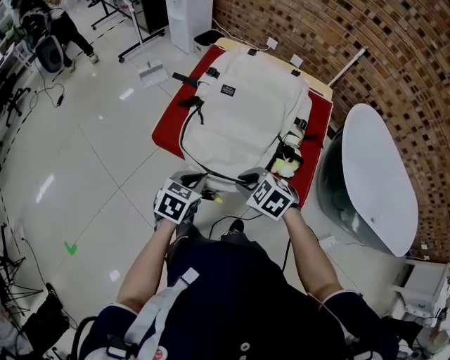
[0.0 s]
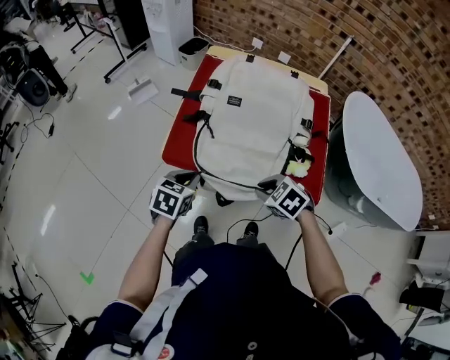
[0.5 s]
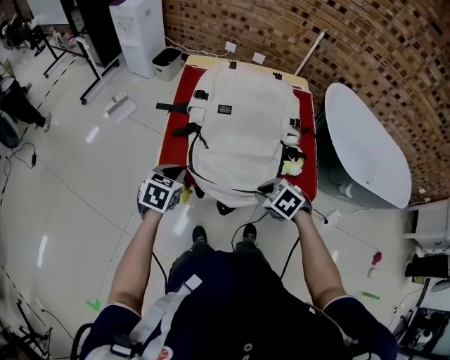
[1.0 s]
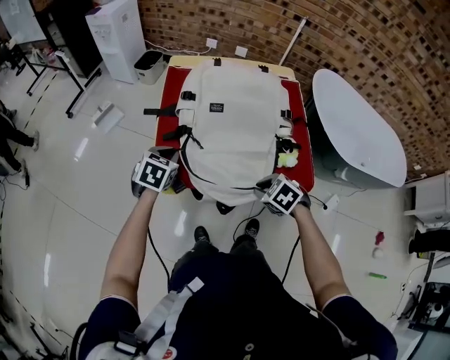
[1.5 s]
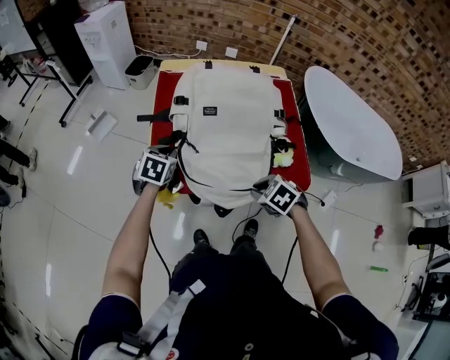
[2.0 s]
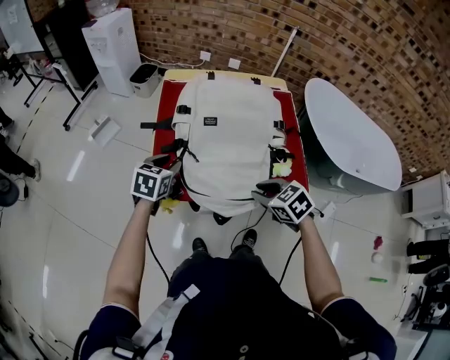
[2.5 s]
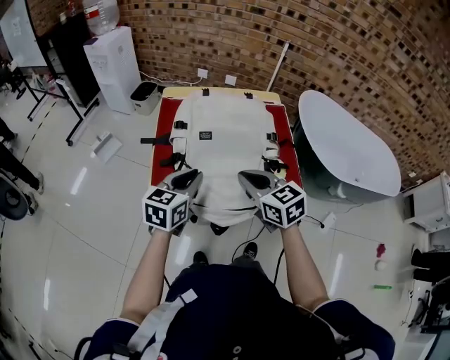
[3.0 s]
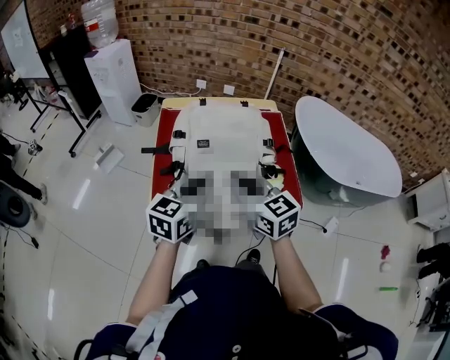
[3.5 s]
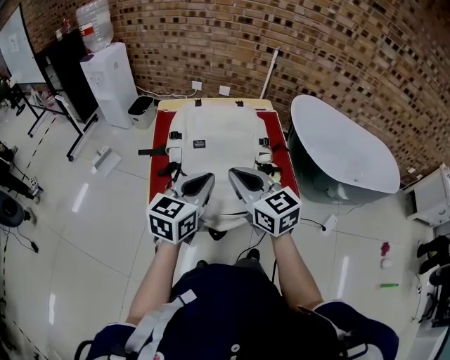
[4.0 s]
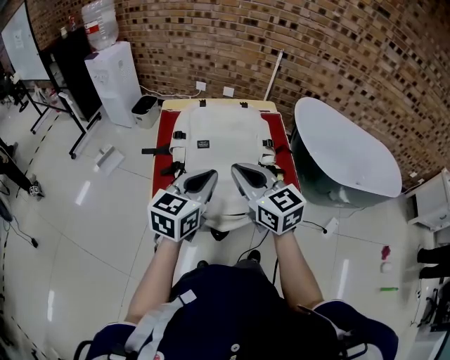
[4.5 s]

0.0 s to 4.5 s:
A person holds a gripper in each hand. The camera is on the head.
0.0 to 2.0 s: The right gripper rotates approximately 30 degrees. Meanwhile the left gripper shifts roughly 20 cm forward.
2.0 to 4.5 s: The left gripper goes some 25 cm upward and to the right, angles its fingers upward, by some 40 degrees, and opens and closes again, while the right gripper goes some 25 cm upward, and angles its fingers upward, by approximately 60 degrees.

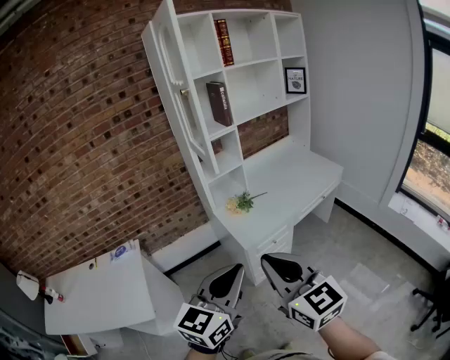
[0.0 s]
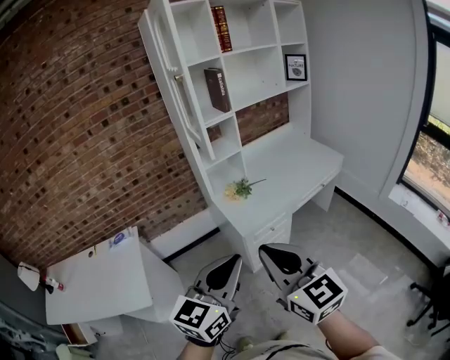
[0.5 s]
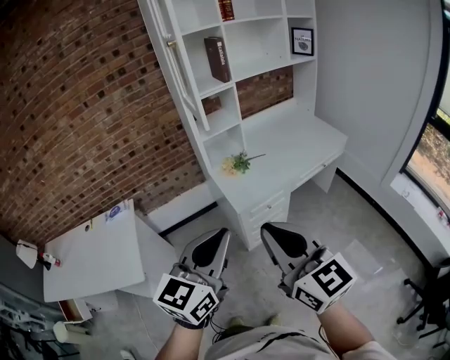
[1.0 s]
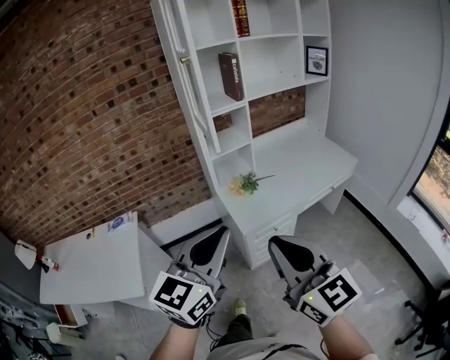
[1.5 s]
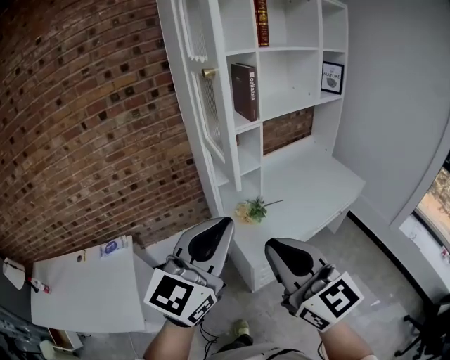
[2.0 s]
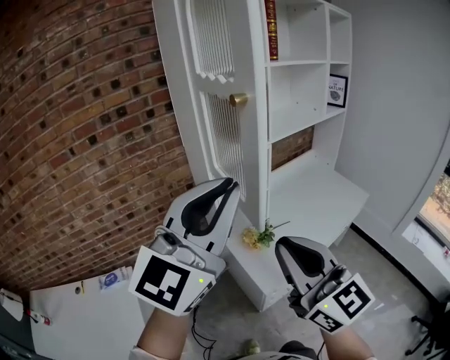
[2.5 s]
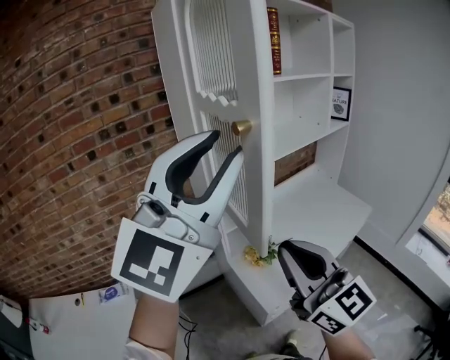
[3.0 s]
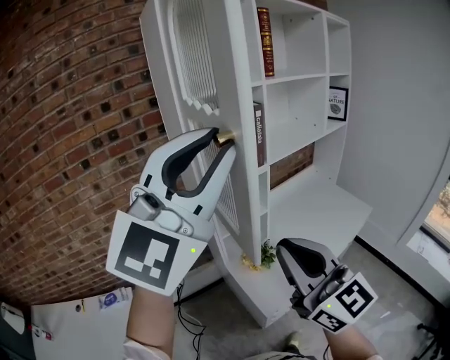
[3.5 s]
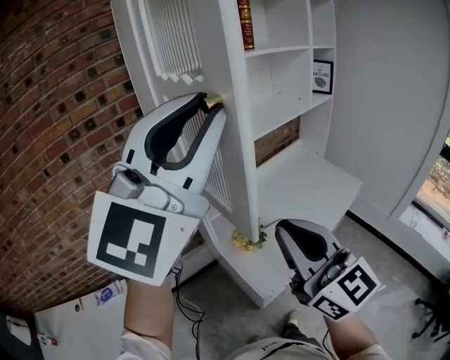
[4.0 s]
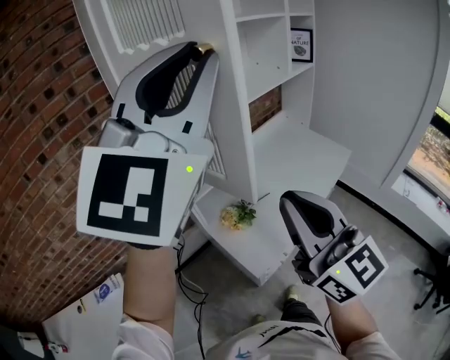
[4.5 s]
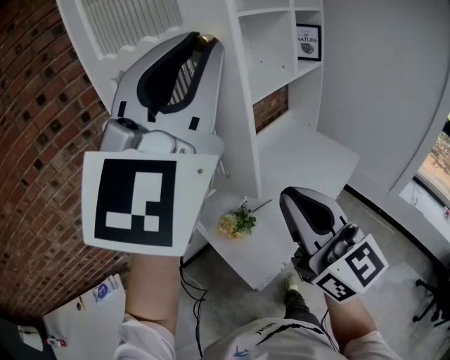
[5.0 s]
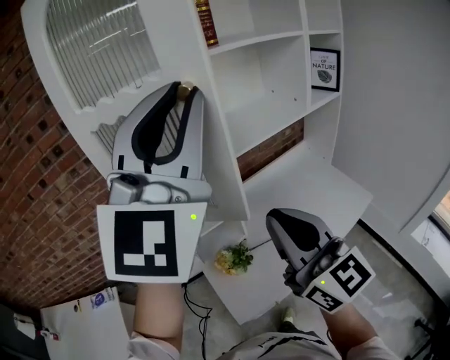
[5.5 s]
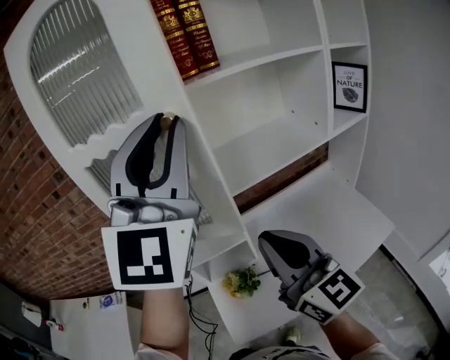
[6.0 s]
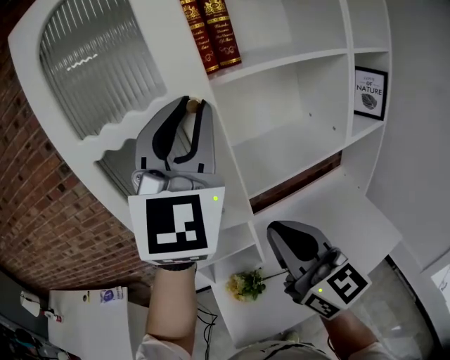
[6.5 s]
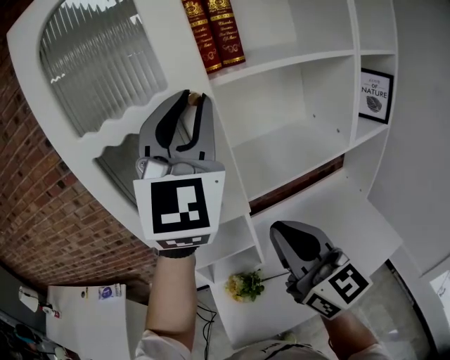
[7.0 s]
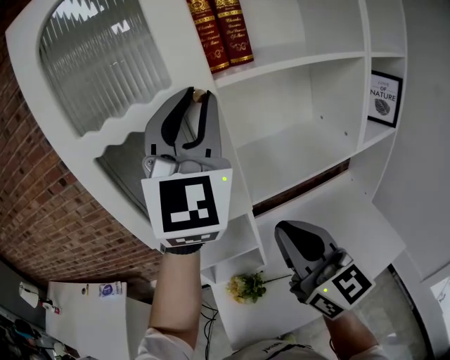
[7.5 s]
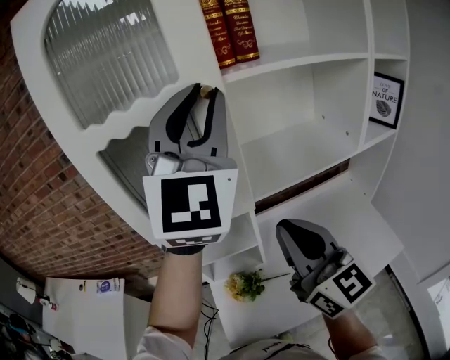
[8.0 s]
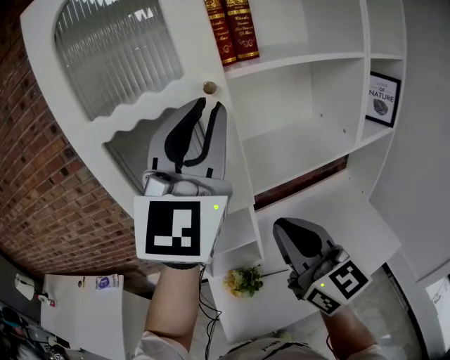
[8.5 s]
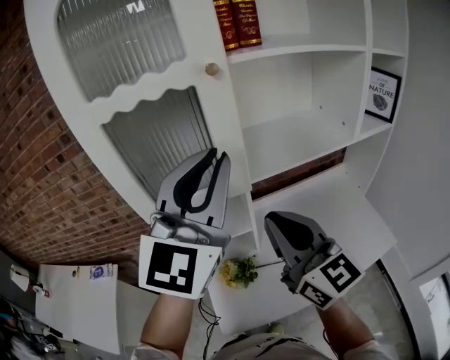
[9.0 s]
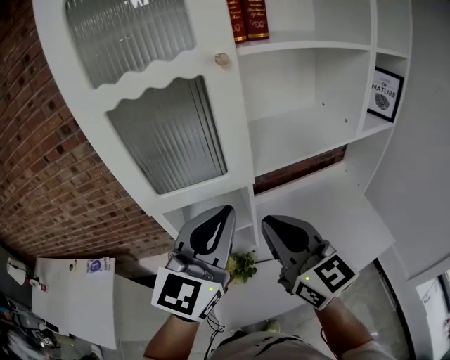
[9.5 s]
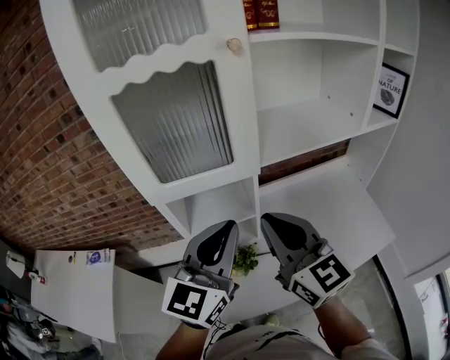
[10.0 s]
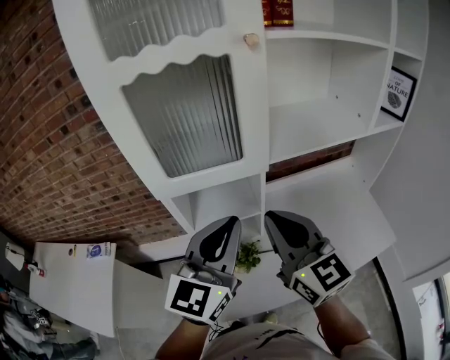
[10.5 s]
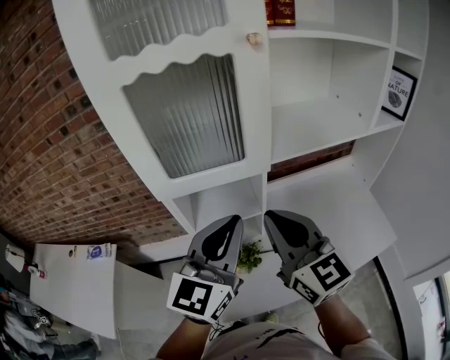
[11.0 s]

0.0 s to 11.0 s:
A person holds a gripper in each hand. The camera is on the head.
0.0 to 2.0 s: The left gripper moves forward and upward, approximately 25 cm. Meanwhile the right gripper is displaced forward by about 20 cm.
2.0 to 3.5 s: The right gripper heads forward, covering approximately 15 cm, while the left gripper is displaced upward and forward by approximately 25 cm, and rotates approximately 30 degrees.
3.5 to 5.5 s: Both grippers move forward and to the right, approximately 25 cm.
5.5 to 7.5 s: Both grippers travel together forward, approximately 15 cm. The left gripper swivels roughly 20 degrees.
7.5 to 9.0 s: The left gripper is displaced downward and backward by about 15 cm, and rotates some 20 degrees.
9.0 to 11.0 s: The left gripper is displaced downward by about 15 cm, and turns by roughly 20 degrees, while the right gripper heads to the left, covering some 5 cm.

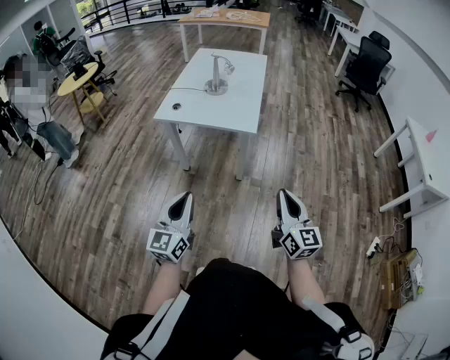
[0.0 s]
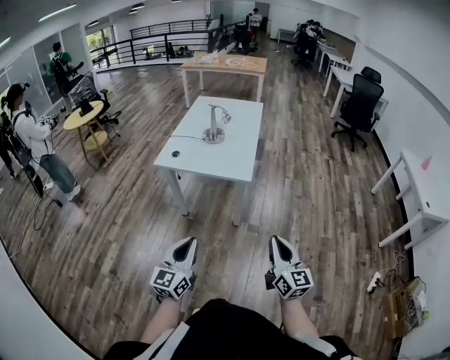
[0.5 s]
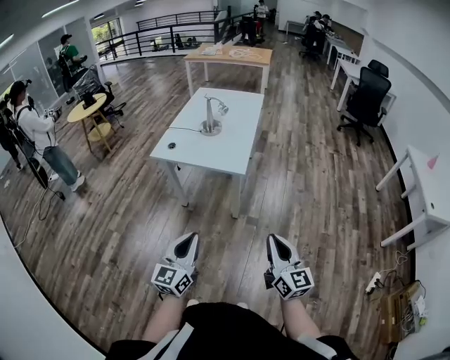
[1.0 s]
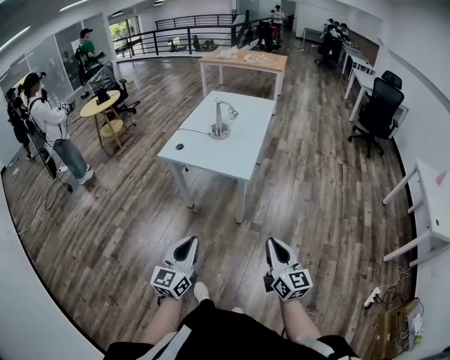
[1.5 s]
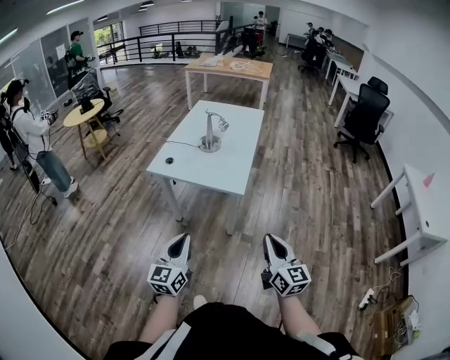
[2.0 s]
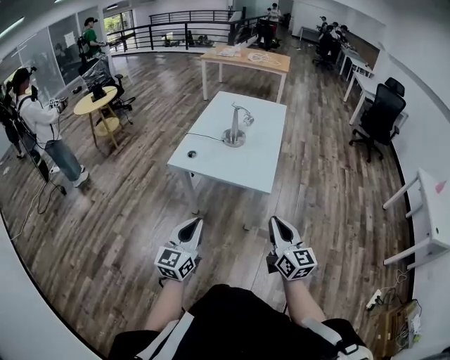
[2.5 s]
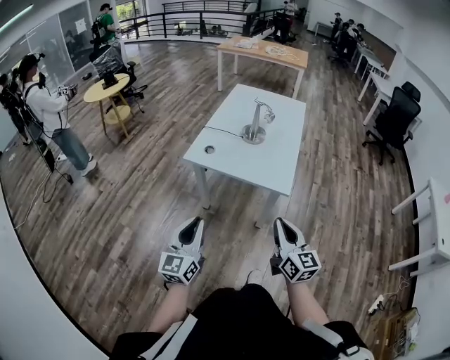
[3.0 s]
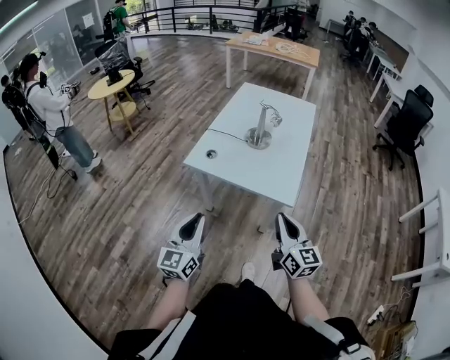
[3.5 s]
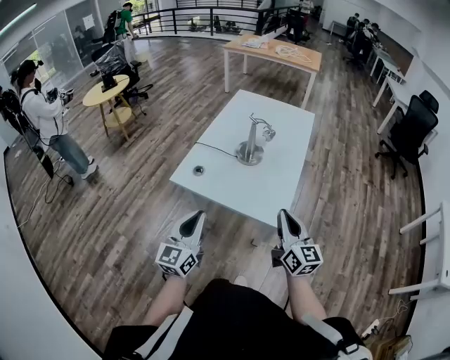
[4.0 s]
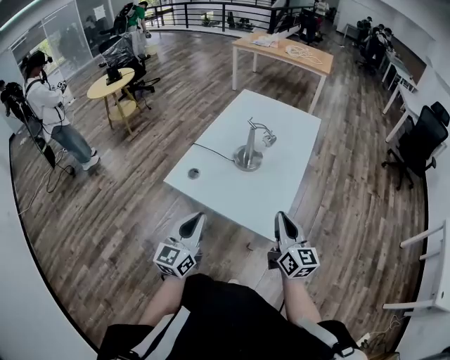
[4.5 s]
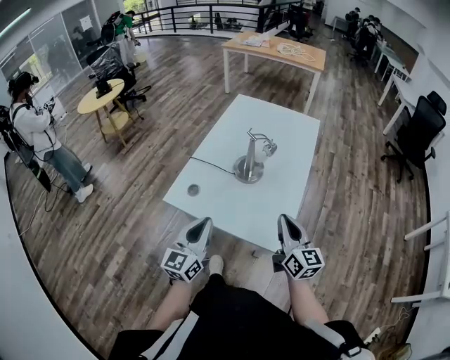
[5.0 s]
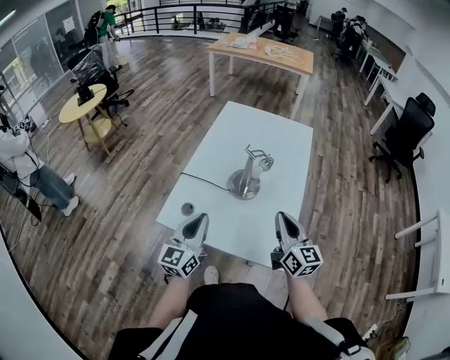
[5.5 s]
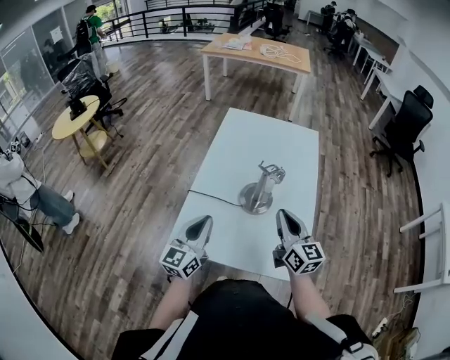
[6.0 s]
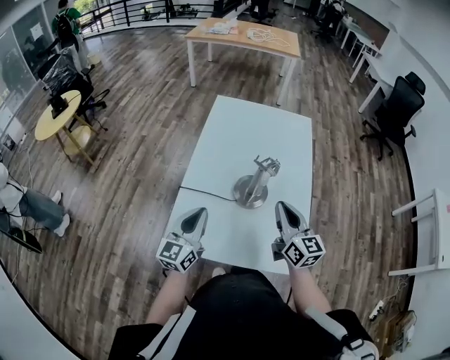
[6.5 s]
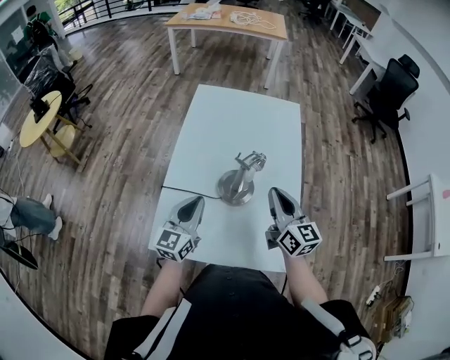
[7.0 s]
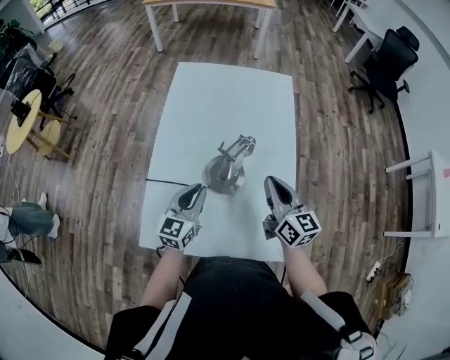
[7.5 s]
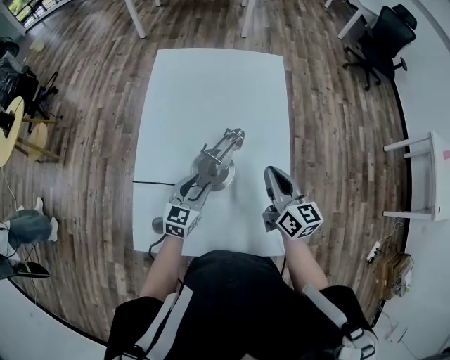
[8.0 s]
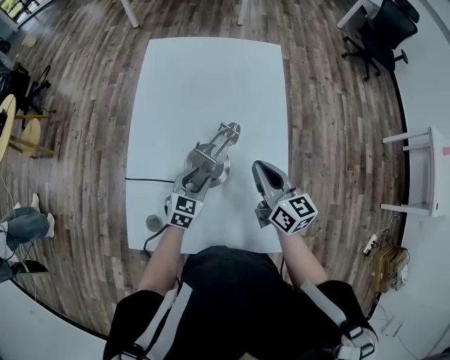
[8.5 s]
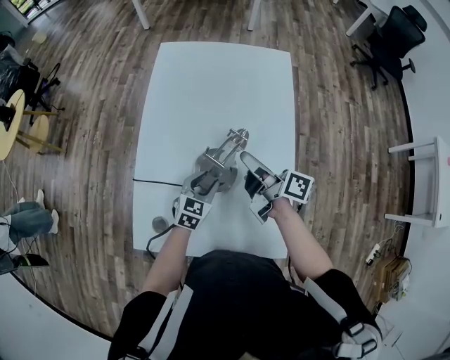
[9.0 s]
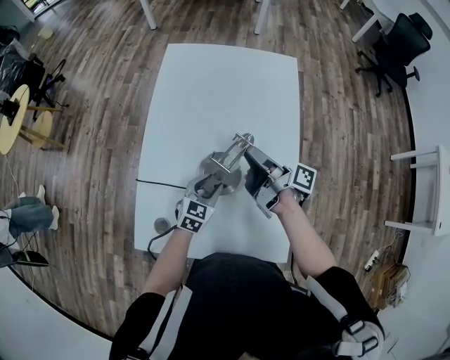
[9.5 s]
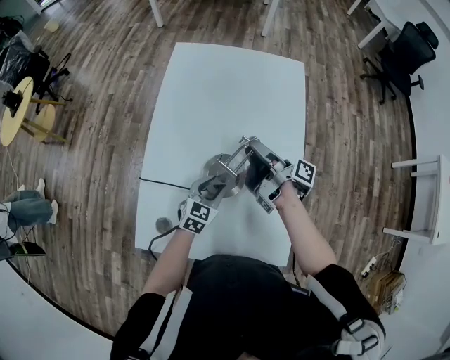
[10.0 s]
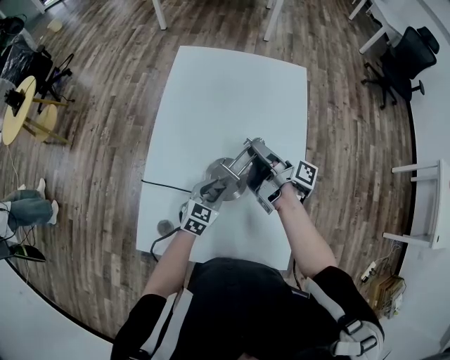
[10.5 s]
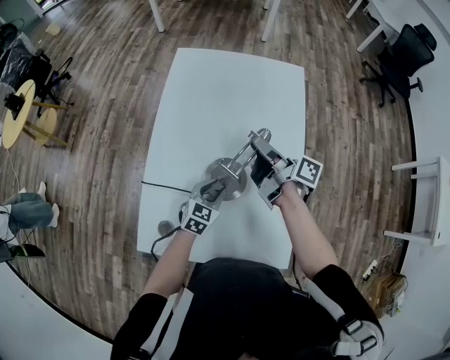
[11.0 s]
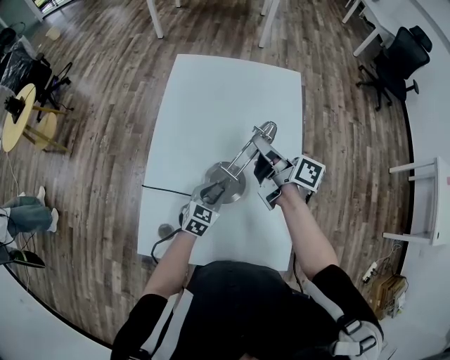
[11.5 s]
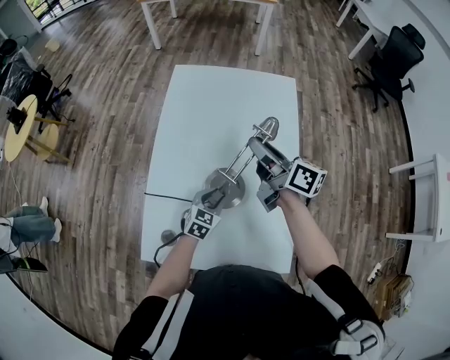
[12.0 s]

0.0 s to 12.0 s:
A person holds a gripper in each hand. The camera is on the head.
0.0 to 2.0 s: The grippers both shift forward by about 5 cm.
2.0 to 4.0 s: Both grippers move forward, about 25 cm.
4.0 to 6.0 s: Both grippers move forward, about 25 cm.
6.0 to 8.0 s: The right gripper is displaced forward, to the right and downward by approximately 15 cm. Meanwhile the left gripper shifts approximately 25 cm downward, forward and to the right, turns by some 30 degrees, and opens its fingers.
8.0 to 10.0 s: The right gripper moves forward and to the left, about 15 cm, rolls clockwise, seen from behind, by about 70 degrees, and opens its fingers. The left gripper heads downward, covering approximately 5 cm.
10.0 to 12.0 s: The right gripper heads upward, covering approximately 10 cm, and twists some 50 degrees counterclockwise, seen from behind.
